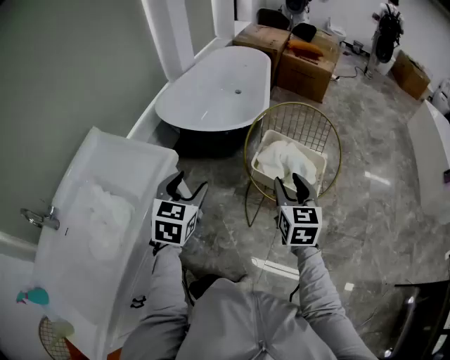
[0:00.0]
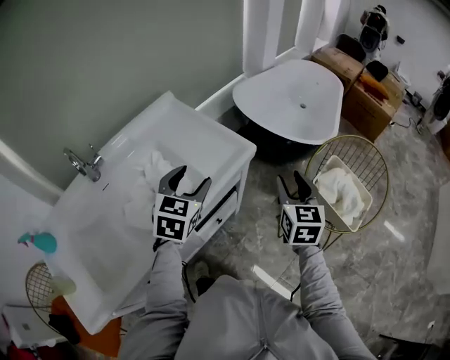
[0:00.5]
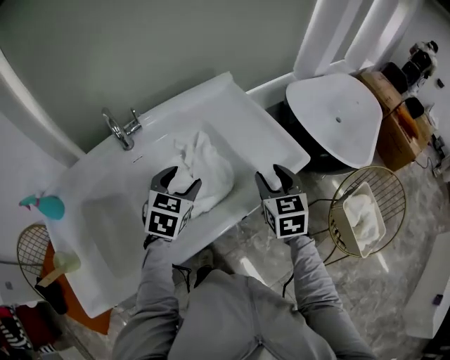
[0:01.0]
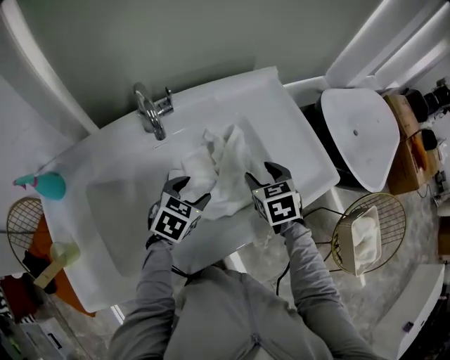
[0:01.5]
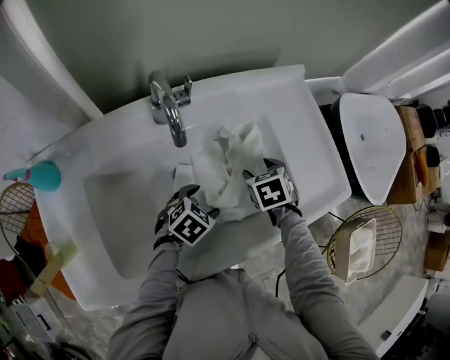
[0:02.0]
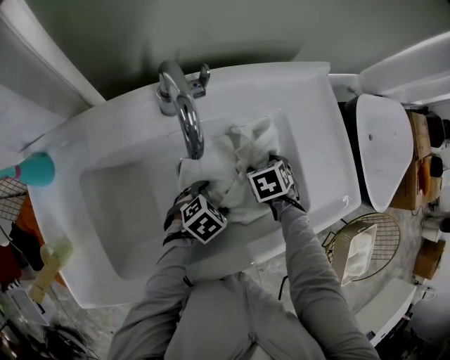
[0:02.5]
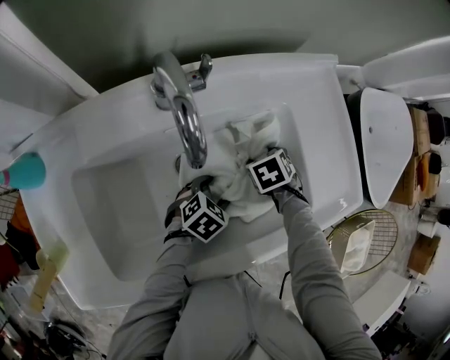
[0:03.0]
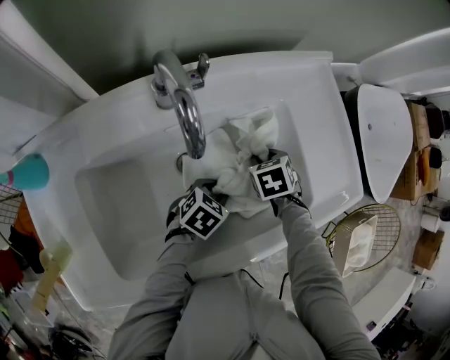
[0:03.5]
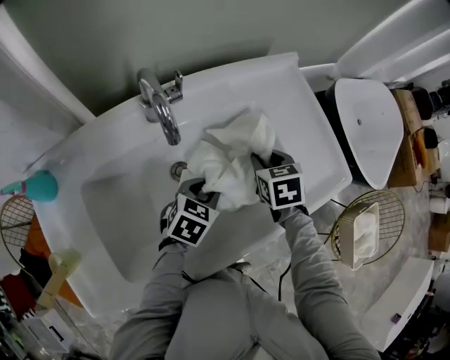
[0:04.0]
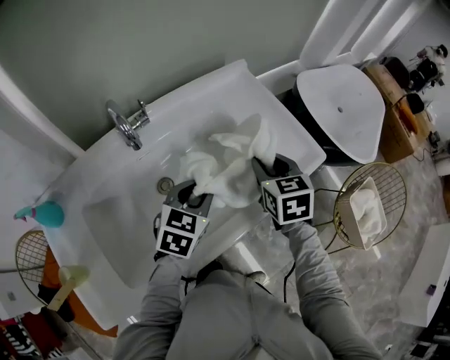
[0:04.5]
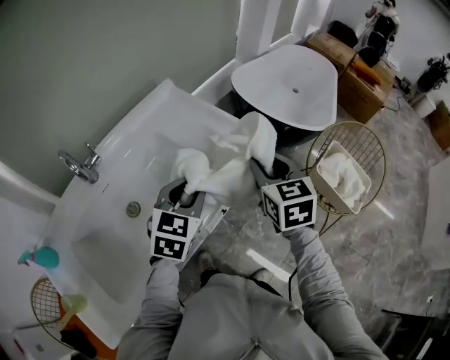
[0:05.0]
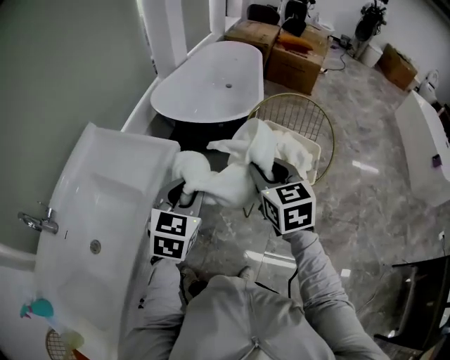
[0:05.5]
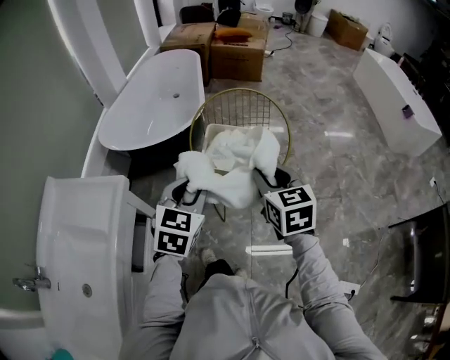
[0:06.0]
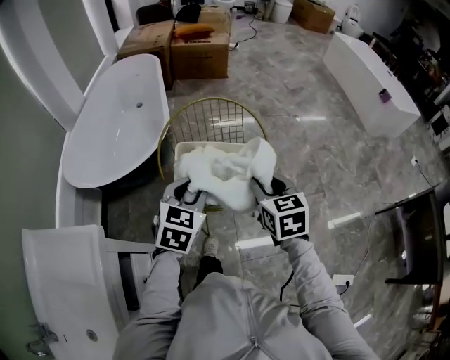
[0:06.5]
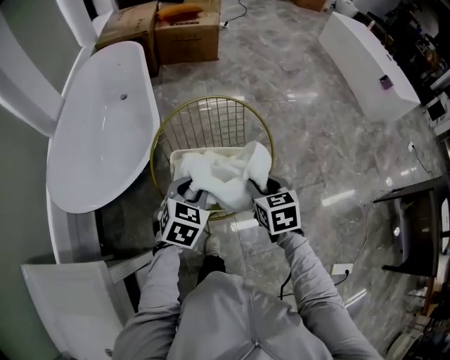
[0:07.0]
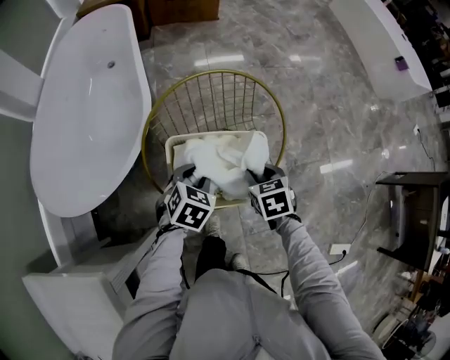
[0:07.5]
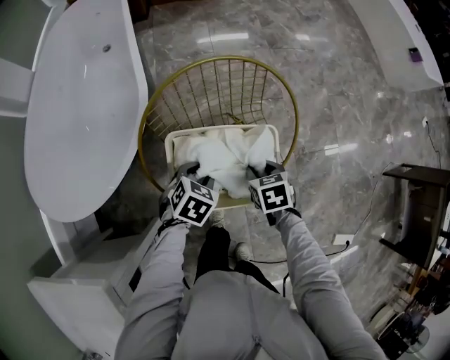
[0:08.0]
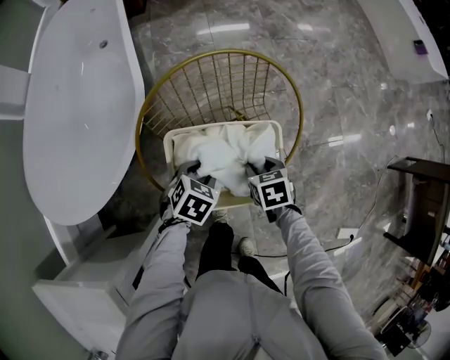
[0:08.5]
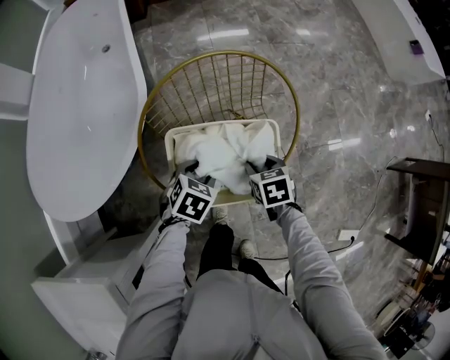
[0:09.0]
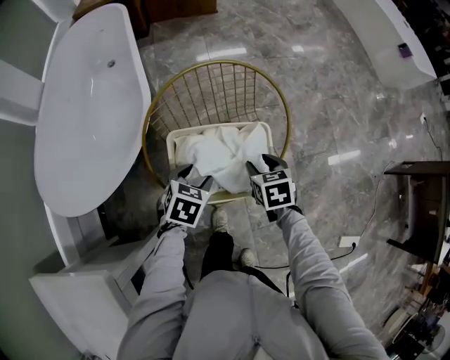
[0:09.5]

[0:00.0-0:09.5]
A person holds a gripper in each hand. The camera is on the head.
0:00.0 to 0:02.0: The two grippers travel together, approximately 60 cm. The right gripper tips its fingers downward by about 50 degrees; the left gripper changes its angle by roughly 40 degrees.
0:02.0 to 0:04.0: The right gripper is displaced upward by some 5 cm, and closes its fingers; the left gripper moves some 5 cm, and closes its fingers.
0:04.0 to 0:05.5: Both grippers are carried roughly 50 cm. The right gripper swivels approximately 50 degrees, while the left gripper turns by about 40 degrees.
0:05.5 to 0:07.5: Both grippers are carried some 40 cm. The left gripper changes its angle by about 50 degrees; the right gripper tips its fingers downward by approximately 40 degrees.
0:07.5 to 0:09.5: The right gripper moves about 10 cm downward and comes back; the left gripper reaches some 10 cm downward, then returns.

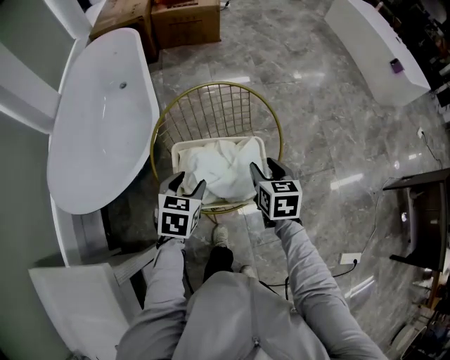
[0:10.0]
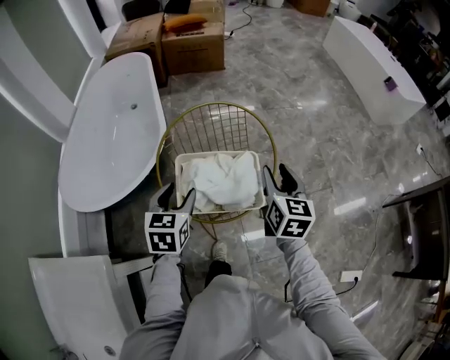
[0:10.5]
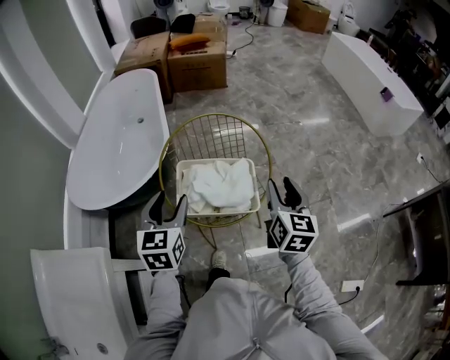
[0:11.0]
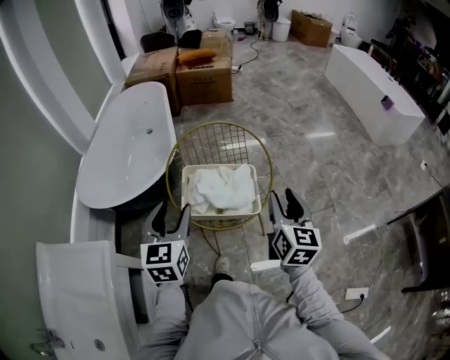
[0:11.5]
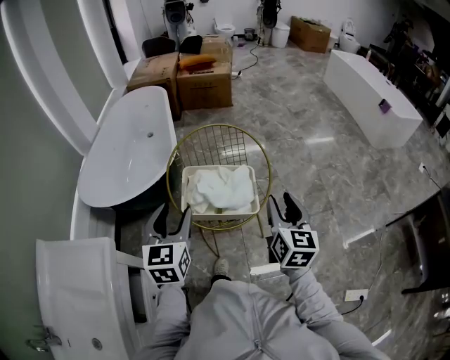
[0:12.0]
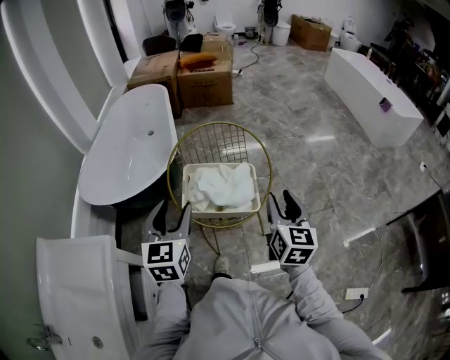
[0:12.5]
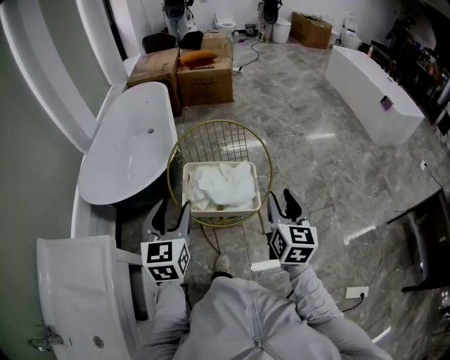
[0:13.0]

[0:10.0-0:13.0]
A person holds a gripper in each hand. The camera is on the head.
0:10.0 to 0:11.5: The right gripper is displaced upward, backward and to the right by some 25 cm, and points its fingers some 30 degrees further upward. The left gripper shifts some 25 cm upward and backward, and angles its fingers upward, by roughly 30 degrees.
0:11.5 to 0:13.0: The grippers make only small movements.

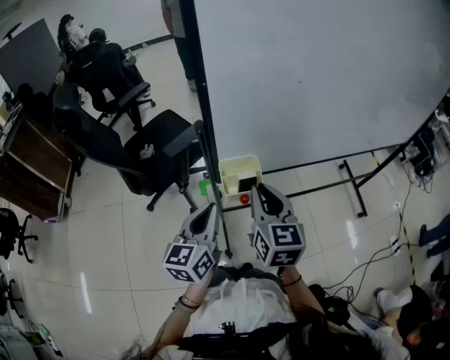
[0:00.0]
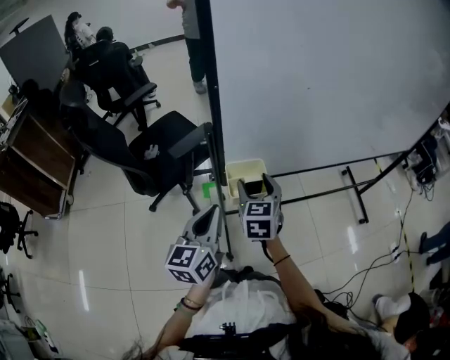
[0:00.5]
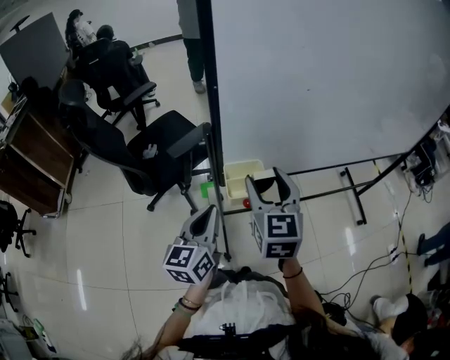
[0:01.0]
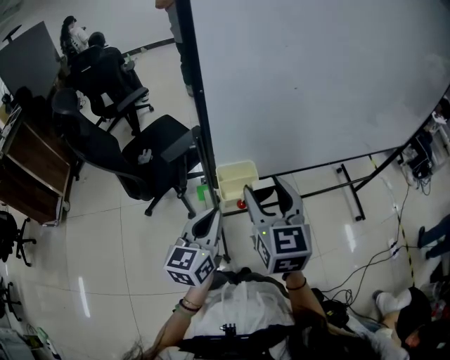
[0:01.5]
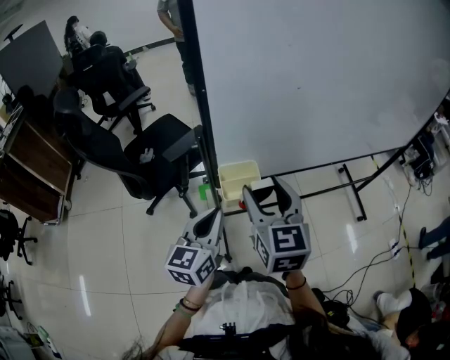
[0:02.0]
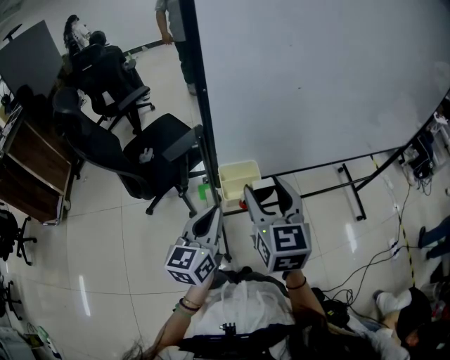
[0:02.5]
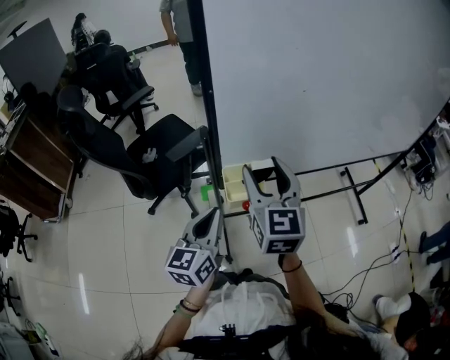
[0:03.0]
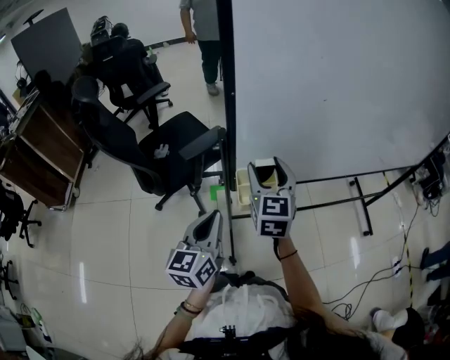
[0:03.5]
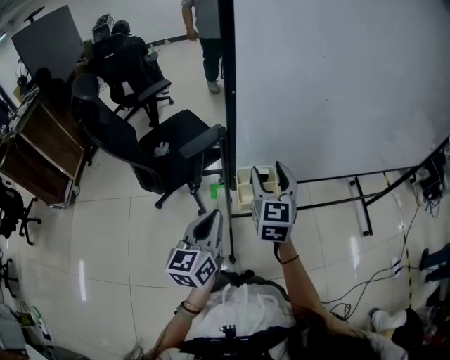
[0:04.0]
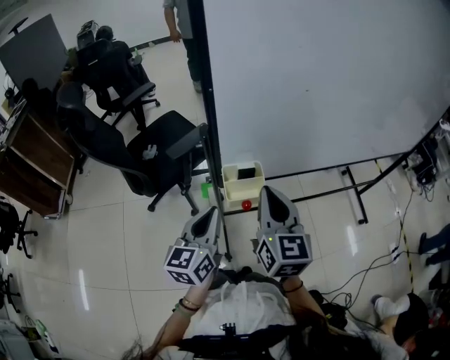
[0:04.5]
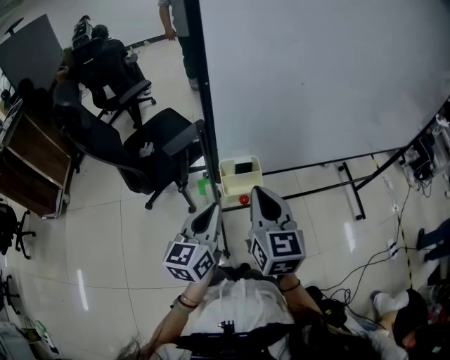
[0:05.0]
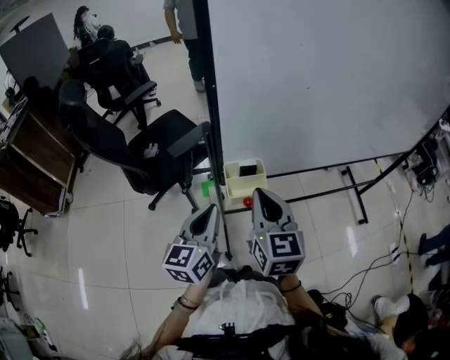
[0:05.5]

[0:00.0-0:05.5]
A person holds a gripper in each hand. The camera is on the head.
0:00.0 to 0:02.0: The right gripper travels upward by some 5 cm, and opens its fingers.
0:02.0 to 0:03.5: The right gripper goes approximately 10 cm forward.
0:03.5 to 0:05.5: The right gripper heads backward, covering about 10 cm, and closes up.

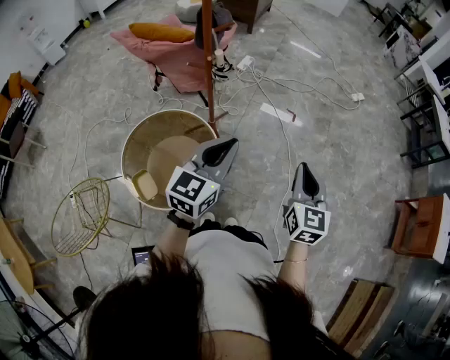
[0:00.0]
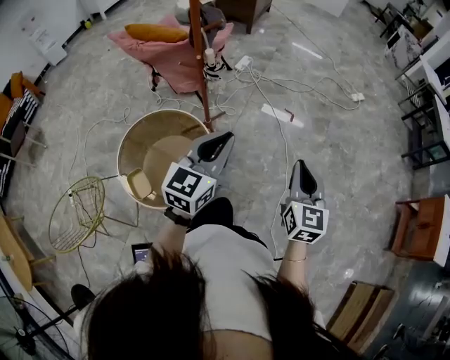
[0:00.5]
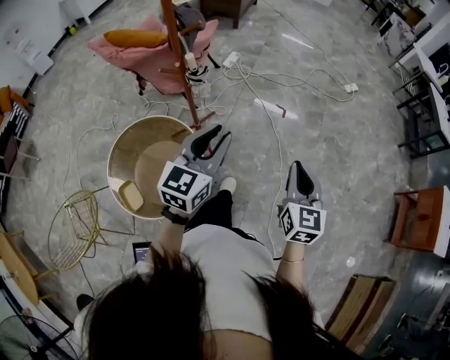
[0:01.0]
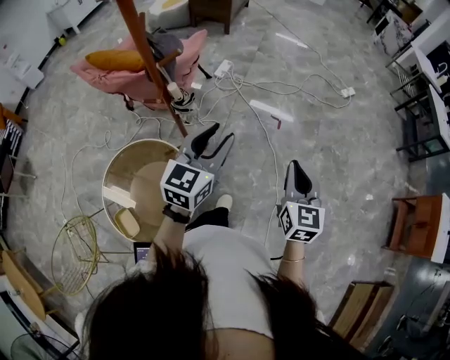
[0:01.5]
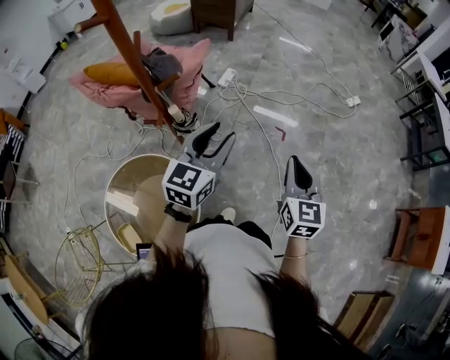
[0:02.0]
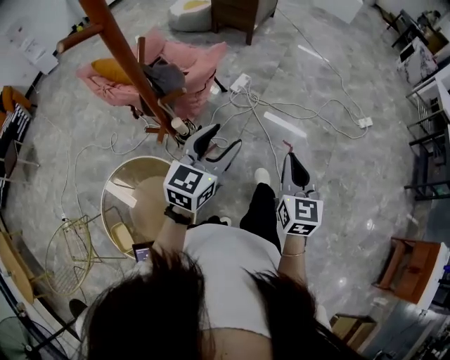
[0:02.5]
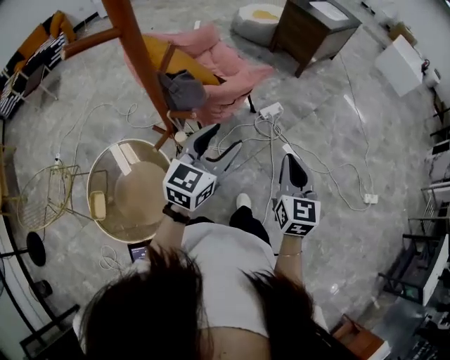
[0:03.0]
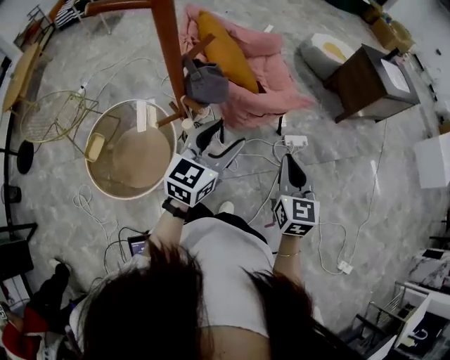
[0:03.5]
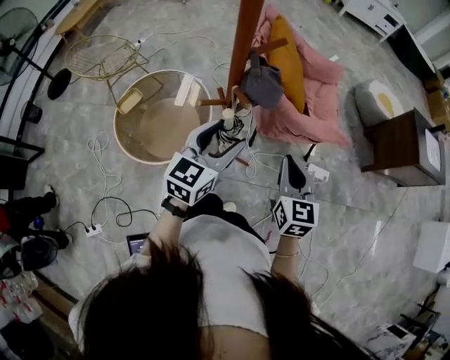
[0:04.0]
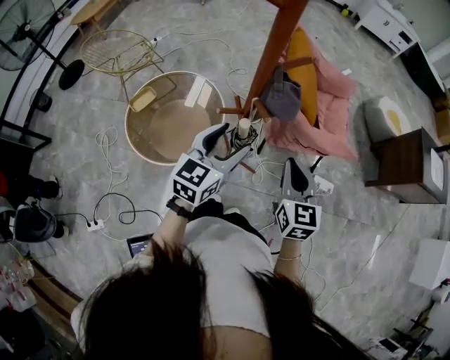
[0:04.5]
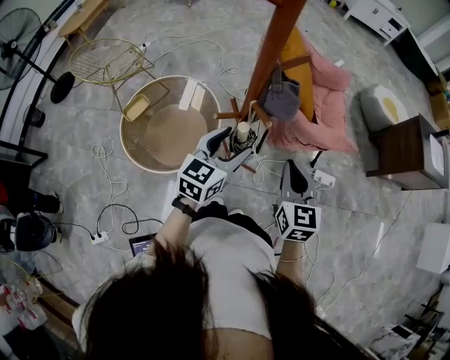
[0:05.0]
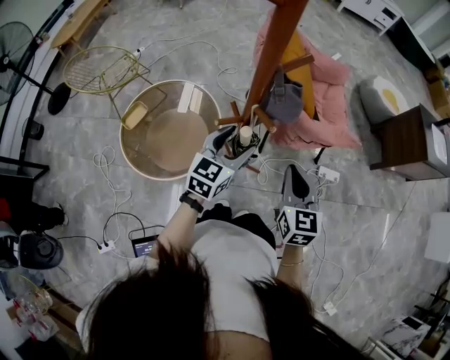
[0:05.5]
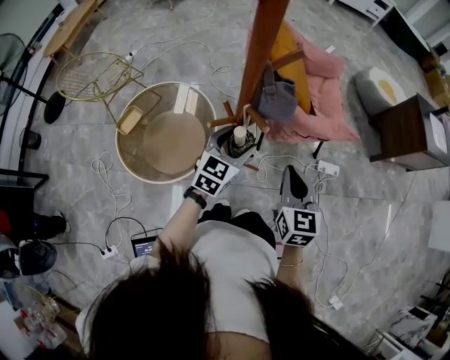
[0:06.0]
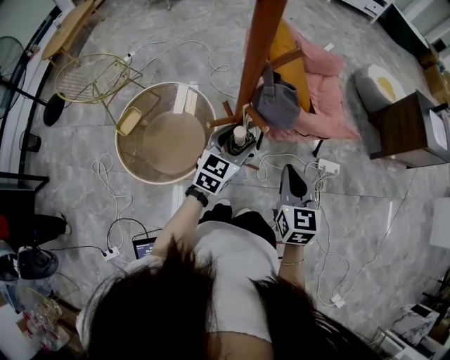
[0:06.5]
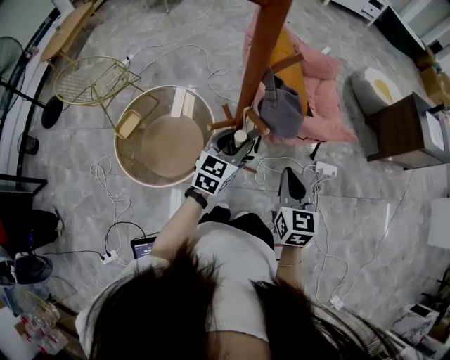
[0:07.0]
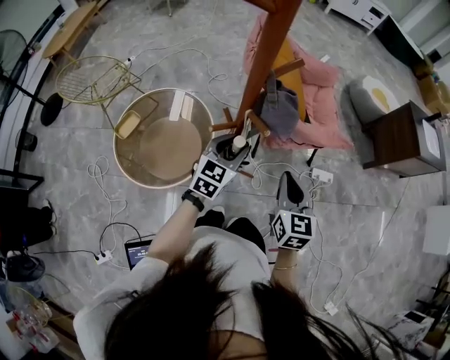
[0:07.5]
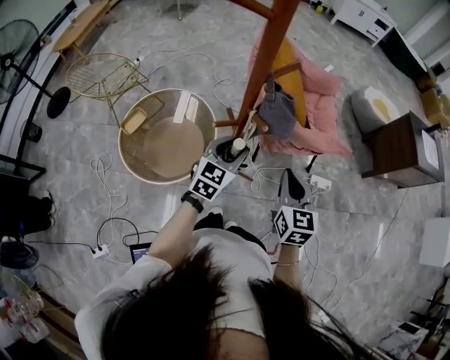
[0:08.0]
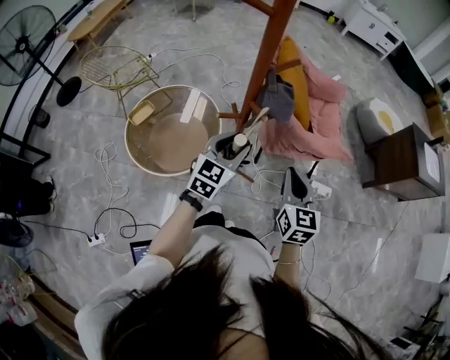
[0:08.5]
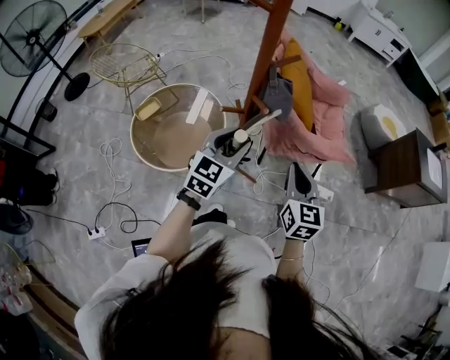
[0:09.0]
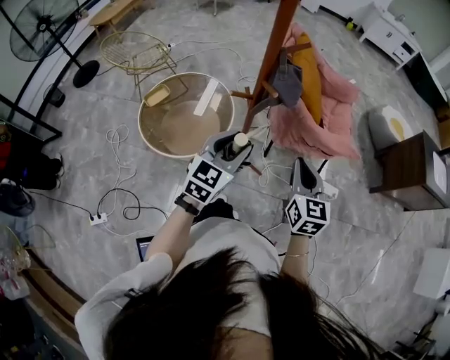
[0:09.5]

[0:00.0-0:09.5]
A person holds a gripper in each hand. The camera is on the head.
0:00.0 to 0:02.0: The grippers both shift forward by some 30 cm. The left gripper opens its fingers.
0:02.0 to 0:04.0: The right gripper ends up approximately 35 cm from where it was, and changes its angle by approximately 80 degrees. The left gripper moves roughly 15 cm, rotates some 70 degrees, and opens up.
0:04.0 to 0:05.5: The left gripper travels downward and forward by some 10 cm, while the right gripper moves to the left, about 5 cm.
0:05.5 to 0:07.5: The left gripper closes up.
0:07.5 to 0:09.5: The right gripper shifts by approximately 10 cm, while the left gripper travels backward and upward by about 15 cm.
